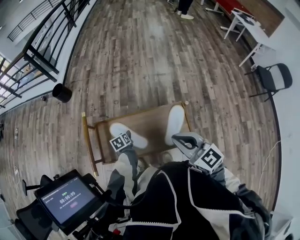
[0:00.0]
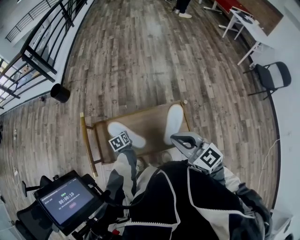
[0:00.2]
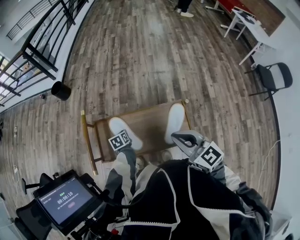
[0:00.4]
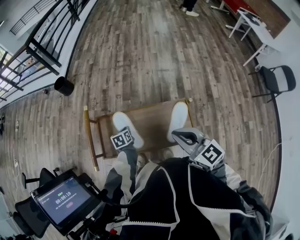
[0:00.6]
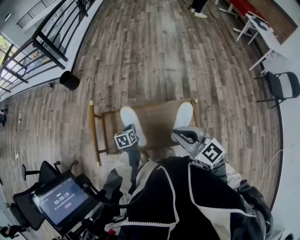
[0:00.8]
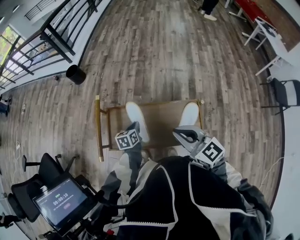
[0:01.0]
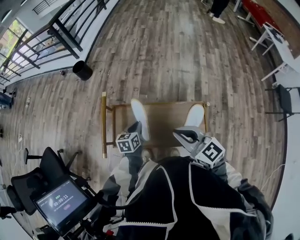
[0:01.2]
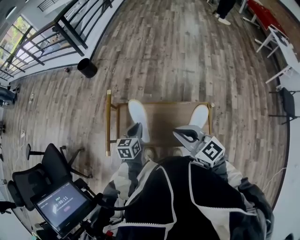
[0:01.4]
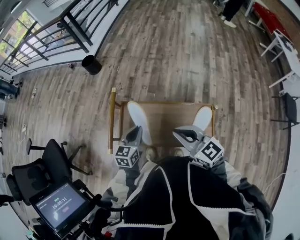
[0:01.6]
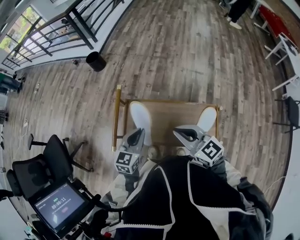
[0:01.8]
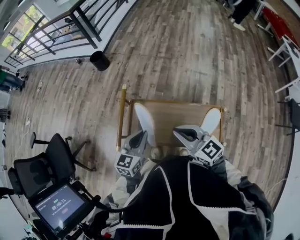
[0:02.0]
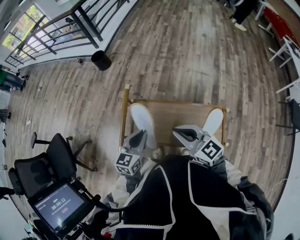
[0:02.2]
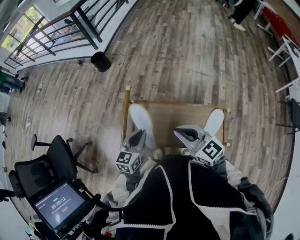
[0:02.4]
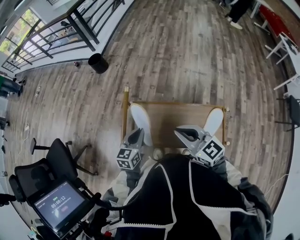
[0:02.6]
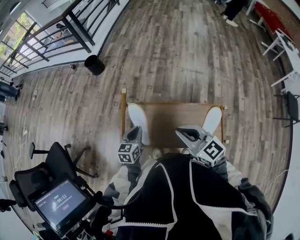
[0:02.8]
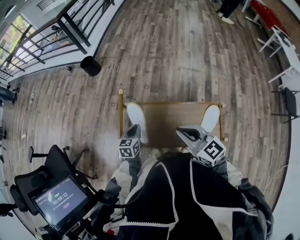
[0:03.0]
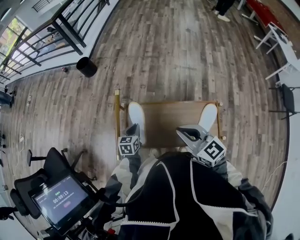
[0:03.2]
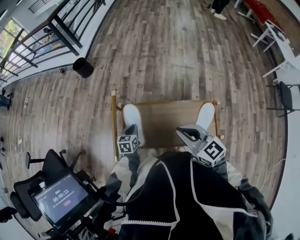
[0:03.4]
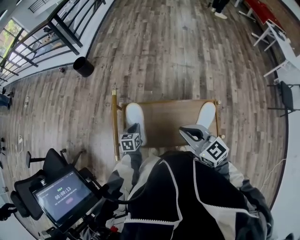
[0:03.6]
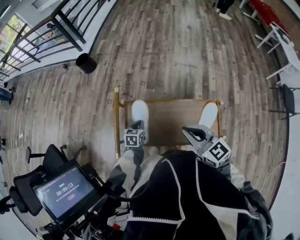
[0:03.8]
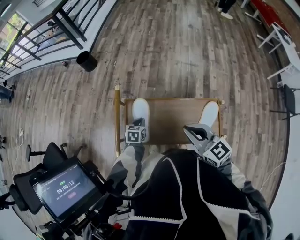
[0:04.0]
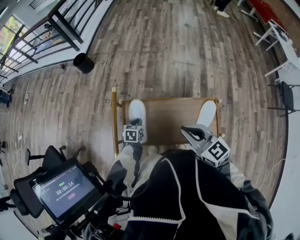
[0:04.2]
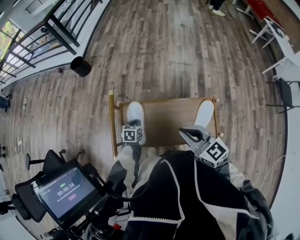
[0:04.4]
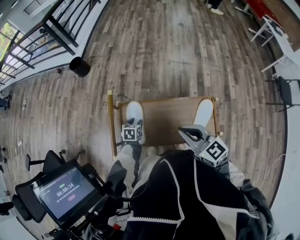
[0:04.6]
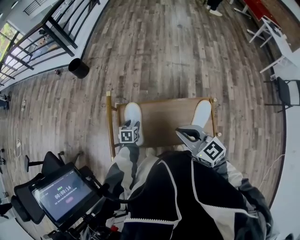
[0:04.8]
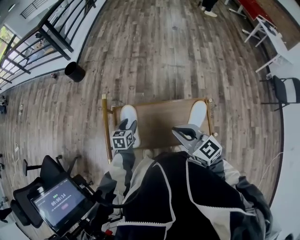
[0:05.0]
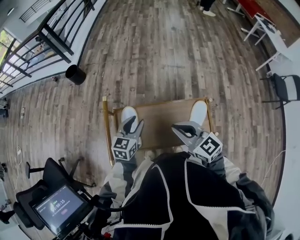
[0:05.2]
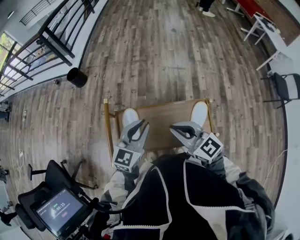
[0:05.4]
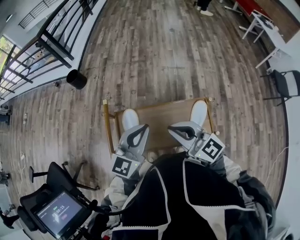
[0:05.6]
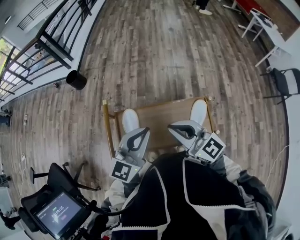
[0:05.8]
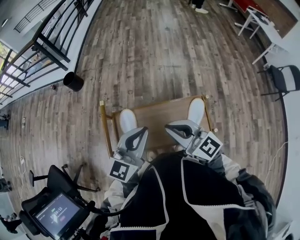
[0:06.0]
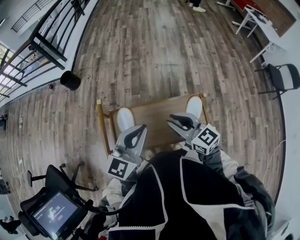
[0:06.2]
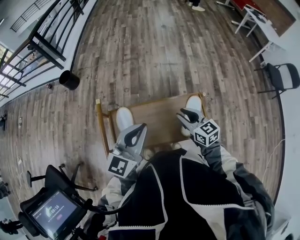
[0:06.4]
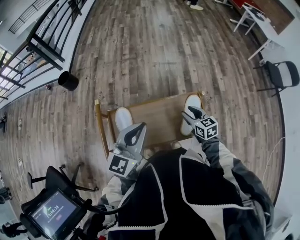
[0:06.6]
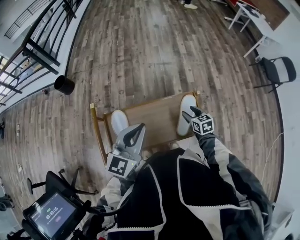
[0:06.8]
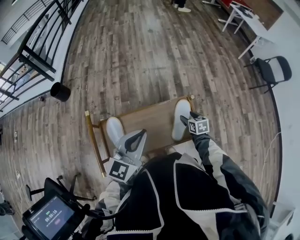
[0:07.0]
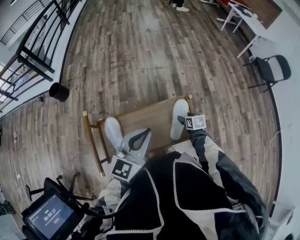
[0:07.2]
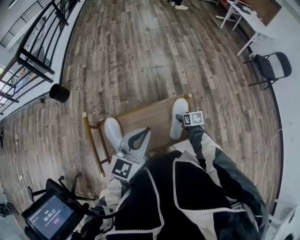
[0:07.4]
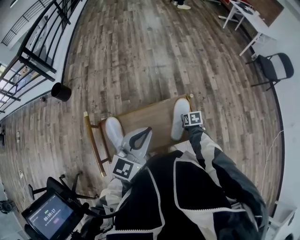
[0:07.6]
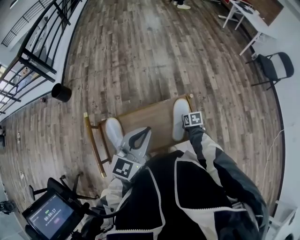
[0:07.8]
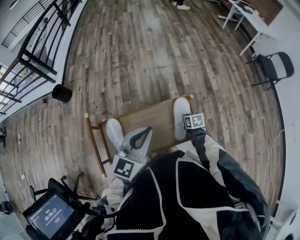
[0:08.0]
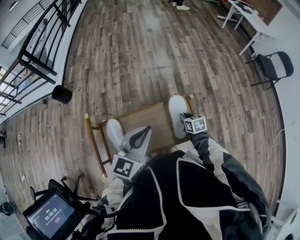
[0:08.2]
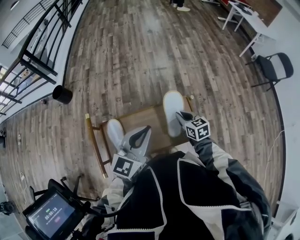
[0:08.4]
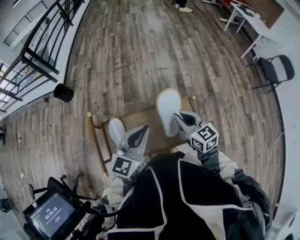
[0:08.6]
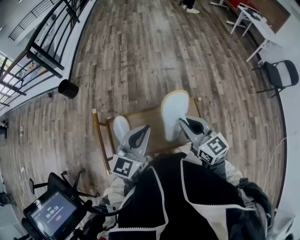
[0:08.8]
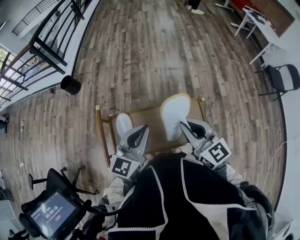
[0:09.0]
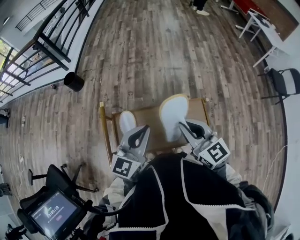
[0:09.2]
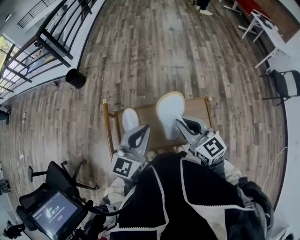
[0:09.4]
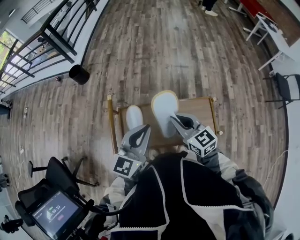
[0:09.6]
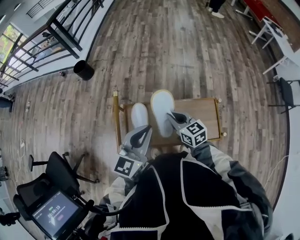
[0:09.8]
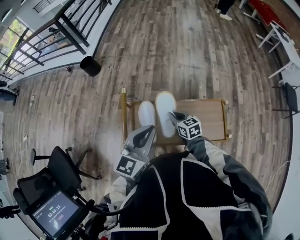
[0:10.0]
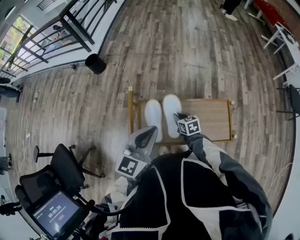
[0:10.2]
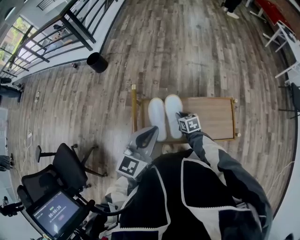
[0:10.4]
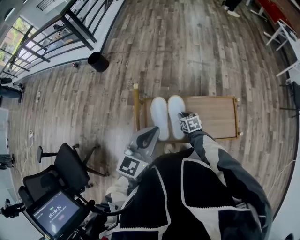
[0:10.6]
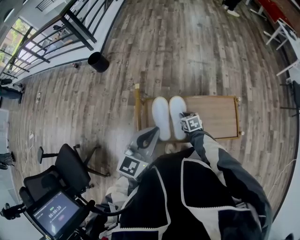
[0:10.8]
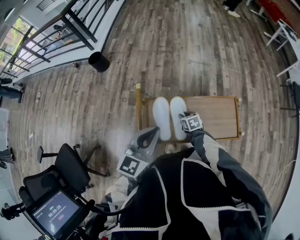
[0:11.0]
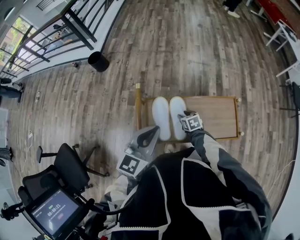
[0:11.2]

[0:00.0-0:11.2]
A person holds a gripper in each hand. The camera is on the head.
0:00.0 to 0:01.6: The left gripper heads upward, covering roughly 25 cm, changes its angle by some 40 degrees, and closes. Meanwhile the right gripper heads to the left, covering approximately 10 cm.
0:01.6 to 0:03.2: The left gripper goes about 15 cm downward and forward; the right gripper changes place by approximately 5 cm.
0:03.2 to 0:04.8: The left gripper moves downward, some 5 cm, and opens up.
0:04.8 to 0:06.4: The left gripper heads upward, covering some 35 cm, angles its fingers upward, by approximately 50 degrees, and closes. Meanwhile the right gripper goes about 15 cm to the right, downward and forward, rotates about 20 degrees, and opens.
0:06.4 to 0:08.0: The left gripper moves to the right, about 10 cm; the right gripper heads downward and to the right, covering some 25 cm, tilts its fingers roughly 40 degrees downward, and opens and closes again.
0:08.0 to 0:09.6: The right gripper shifts approximately 35 cm upward and to the left, and angles its fingers upward, by approximately 40 degrees. Meanwhile the left gripper heads to the left, covering about 10 cm.
0:09.6 to 0:11.2: The right gripper moves downward, about 30 cm, angles its fingers downward, by some 40 degrees, and opens up; the left gripper heads to the left, covering about 10 cm.

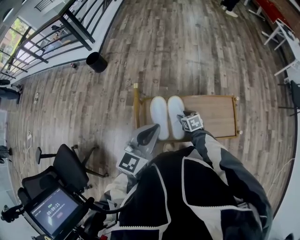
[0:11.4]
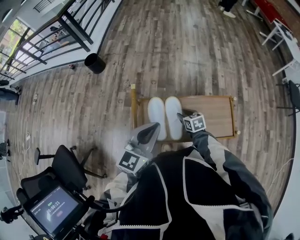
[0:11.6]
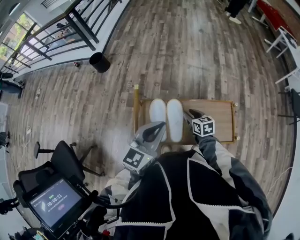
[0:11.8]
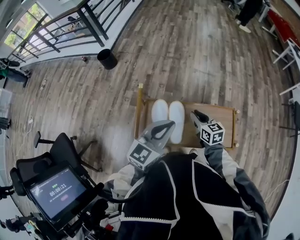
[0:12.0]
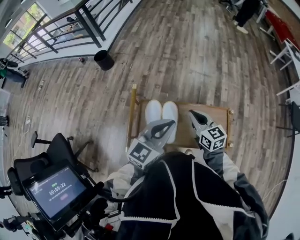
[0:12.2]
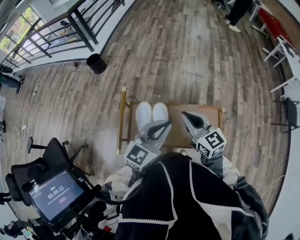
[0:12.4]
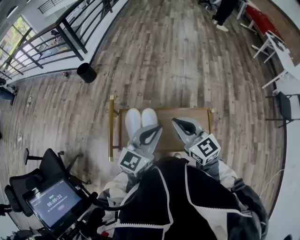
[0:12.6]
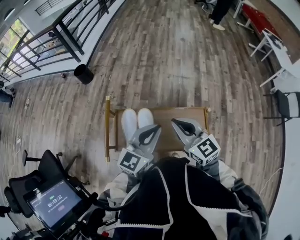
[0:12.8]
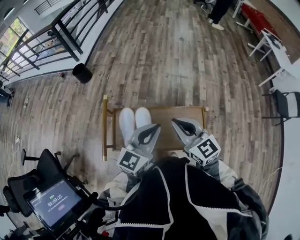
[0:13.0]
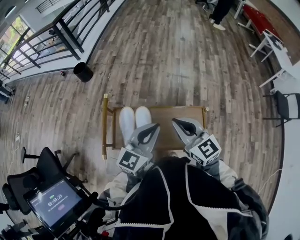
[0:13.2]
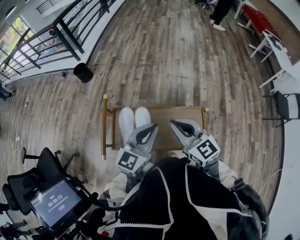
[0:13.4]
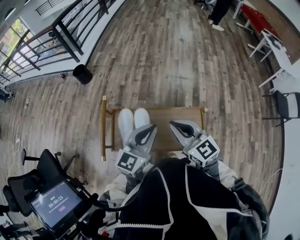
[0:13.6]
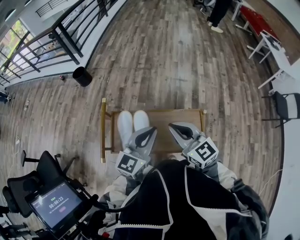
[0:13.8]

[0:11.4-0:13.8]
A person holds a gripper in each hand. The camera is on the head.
0:11.4 to 0:12.6: The left gripper shifts some 15 cm to the right and upward. The right gripper moves upward, approximately 40 cm, tips its fingers upward by about 40 degrees, and closes.
0:12.6 to 0:13.8: The right gripper heads to the right, covering some 5 cm.

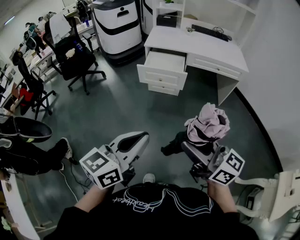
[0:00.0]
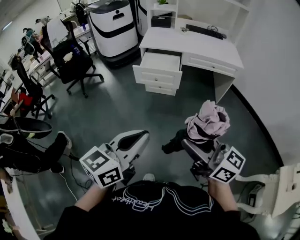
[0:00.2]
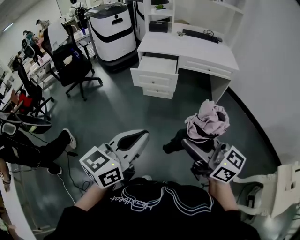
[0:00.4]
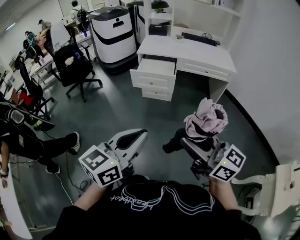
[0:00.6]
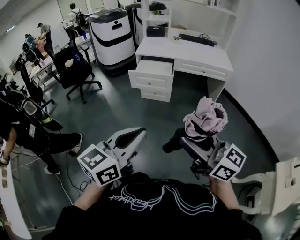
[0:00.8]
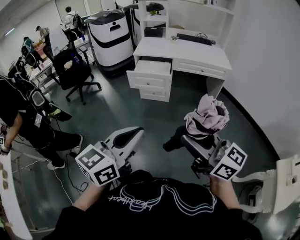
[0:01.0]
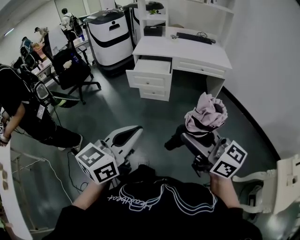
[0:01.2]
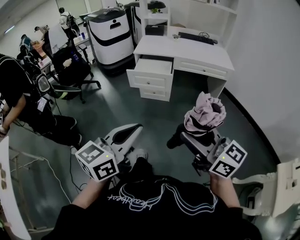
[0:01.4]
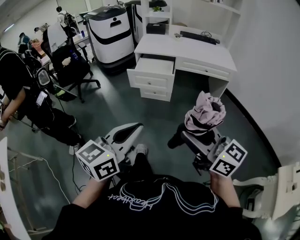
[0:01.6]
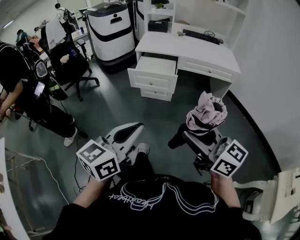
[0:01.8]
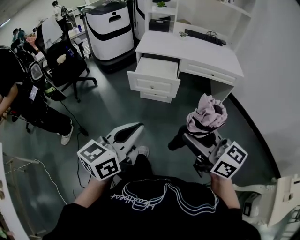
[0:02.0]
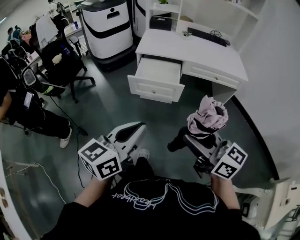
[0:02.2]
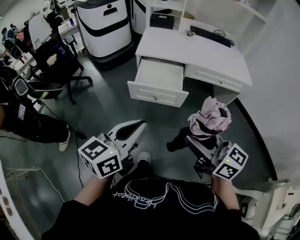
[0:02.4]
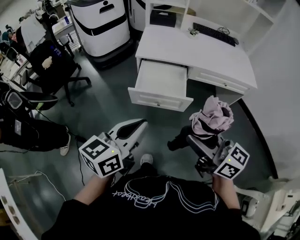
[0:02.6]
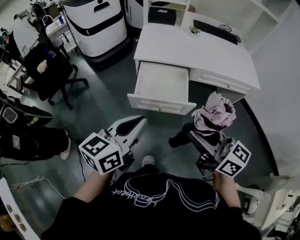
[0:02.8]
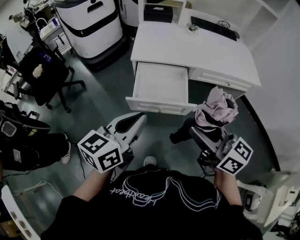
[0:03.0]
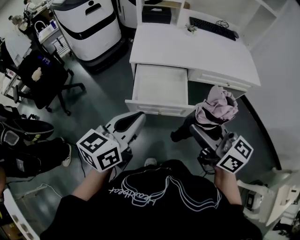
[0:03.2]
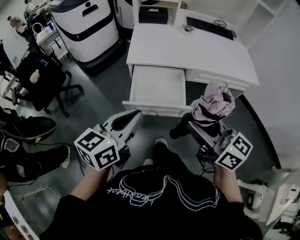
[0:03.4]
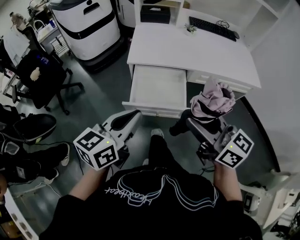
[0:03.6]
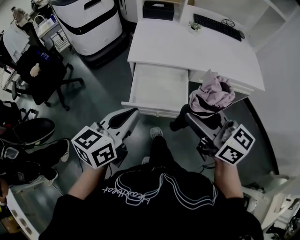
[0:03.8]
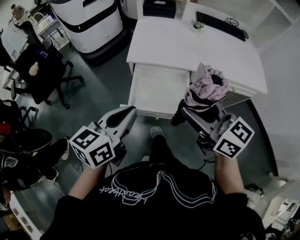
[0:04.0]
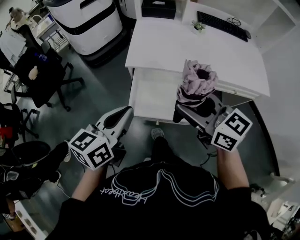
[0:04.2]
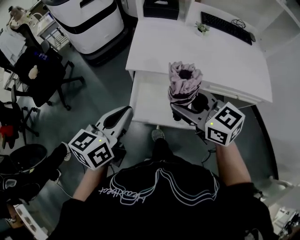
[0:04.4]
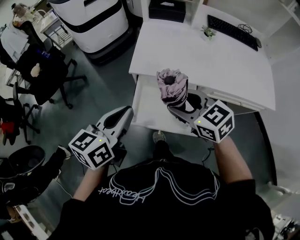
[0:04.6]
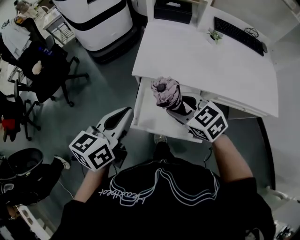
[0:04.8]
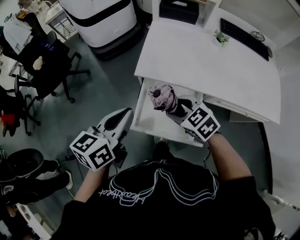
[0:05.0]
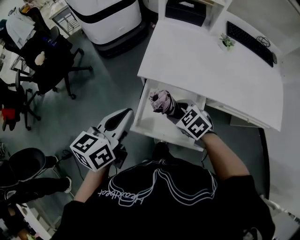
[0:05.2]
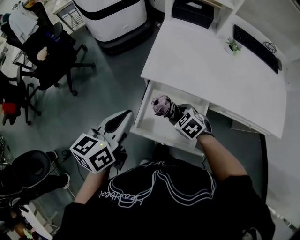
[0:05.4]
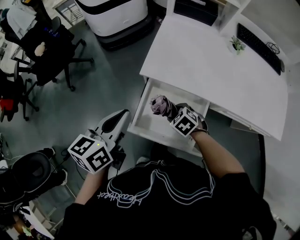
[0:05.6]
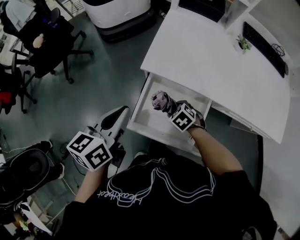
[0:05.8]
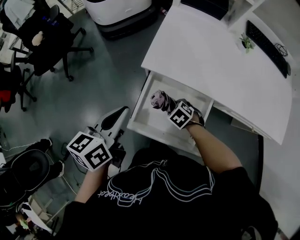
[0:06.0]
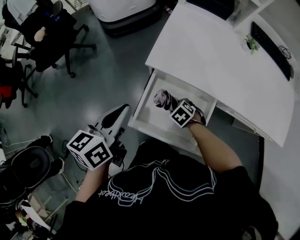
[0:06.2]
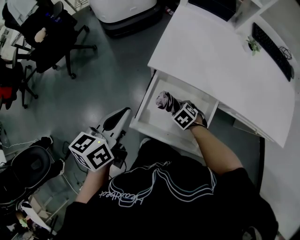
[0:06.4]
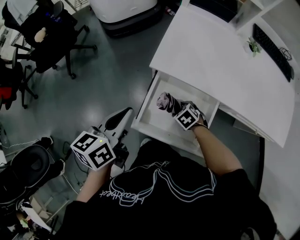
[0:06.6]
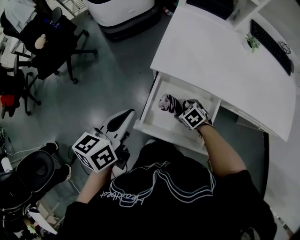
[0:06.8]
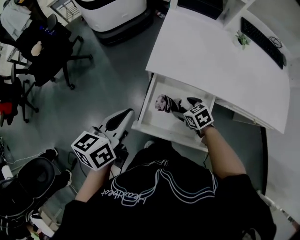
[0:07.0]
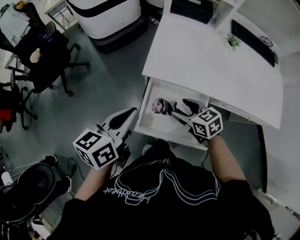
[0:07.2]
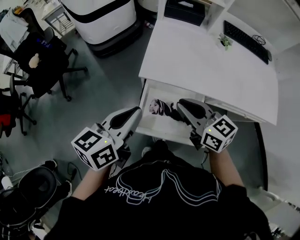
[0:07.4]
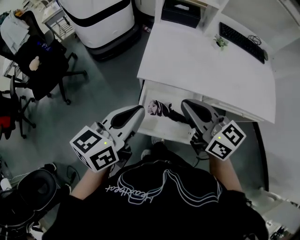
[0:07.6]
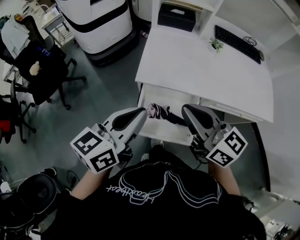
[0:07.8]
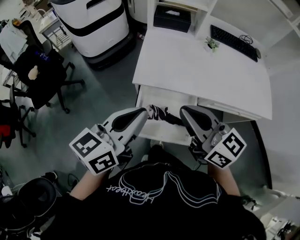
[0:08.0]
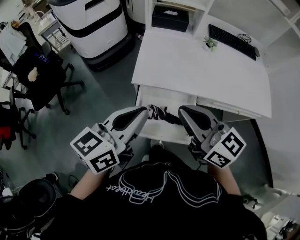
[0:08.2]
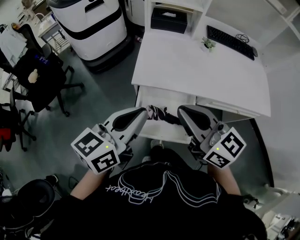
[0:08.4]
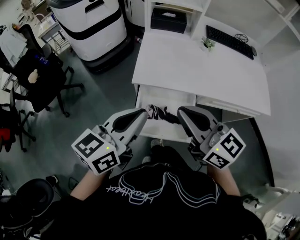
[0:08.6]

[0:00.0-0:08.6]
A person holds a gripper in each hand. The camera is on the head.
0:00.0 to 0:01.4: The two grippers go roughly 10 cm to the right and backward.
0:01.4 to 0:02.8: Both grippers are carried forward, some 50 cm.
0:02.8 to 0:04.4: Both grippers travel together forward, some 20 cm. The right gripper changes its angle by some 30 degrees.
0:04.4 to 0:05.8: The left gripper goes roughly 10 cm forward and downward; the right gripper travels downward by approximately 35 cm, and points its fingers roughly 50 degrees further downward.
0:05.8 to 0:07.2: The right gripper shifts some 15 cm upward, and tilts its fingers some 30 degrees upward.
0:07.2 to 0:08.6: The left gripper heads upward and to the right, covering about 10 cm, and turns by some 20 degrees. The right gripper travels upward by about 25 cm, tips its fingers upward by roughly 40 degrees, and closes up.

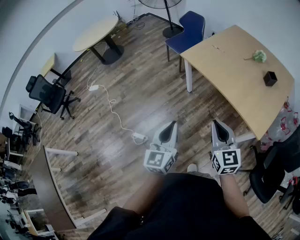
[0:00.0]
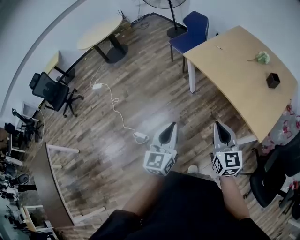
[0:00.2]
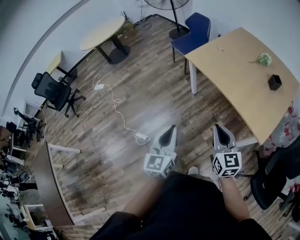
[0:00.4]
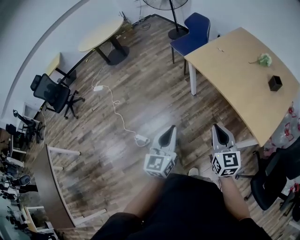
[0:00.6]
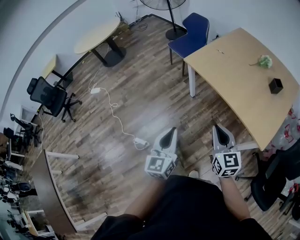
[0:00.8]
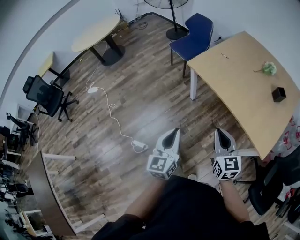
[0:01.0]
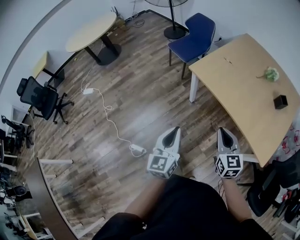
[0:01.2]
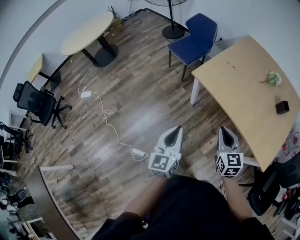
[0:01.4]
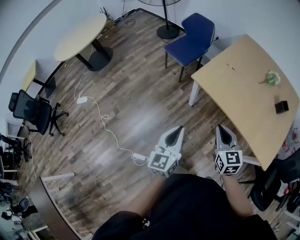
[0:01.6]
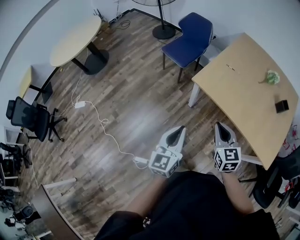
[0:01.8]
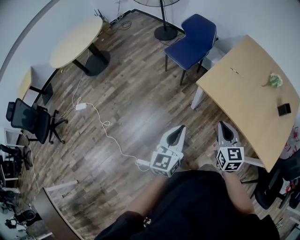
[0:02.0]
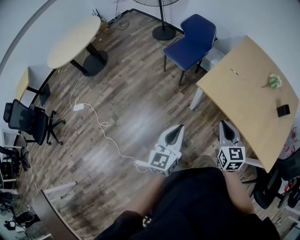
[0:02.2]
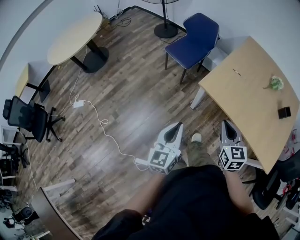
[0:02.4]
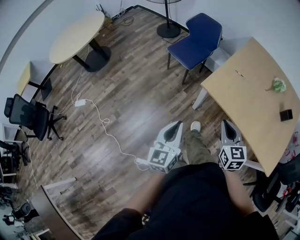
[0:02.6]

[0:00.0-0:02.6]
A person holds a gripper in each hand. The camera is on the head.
0:00.0 to 0:01.2: The grippers both shift forward by approximately 25 cm.
0:01.2 to 0:02.6: Both grippers move forward and to the left, some 30 cm.
